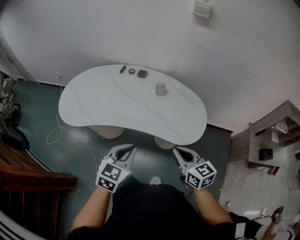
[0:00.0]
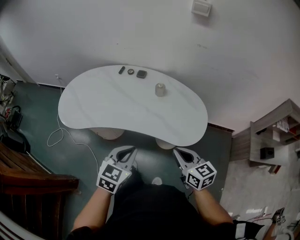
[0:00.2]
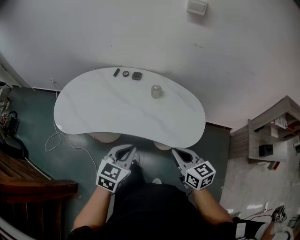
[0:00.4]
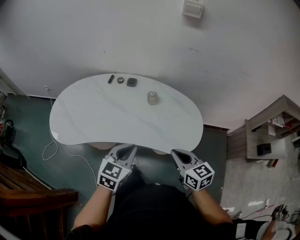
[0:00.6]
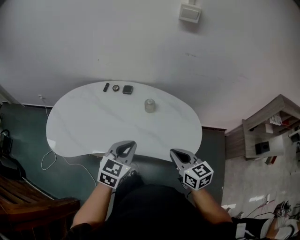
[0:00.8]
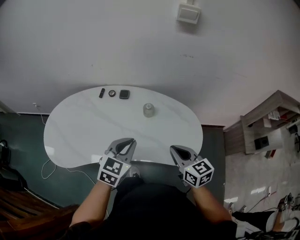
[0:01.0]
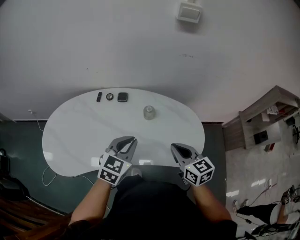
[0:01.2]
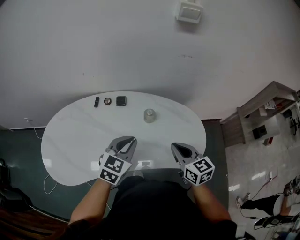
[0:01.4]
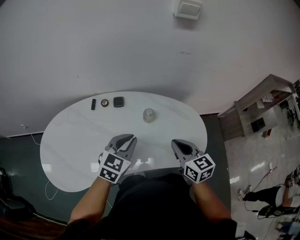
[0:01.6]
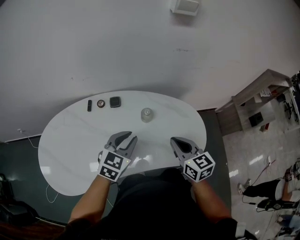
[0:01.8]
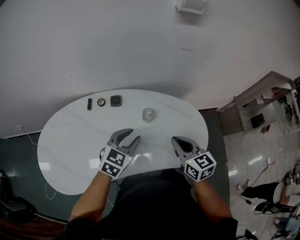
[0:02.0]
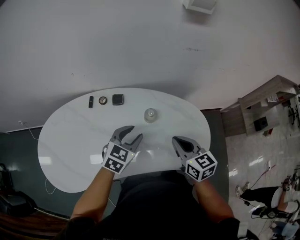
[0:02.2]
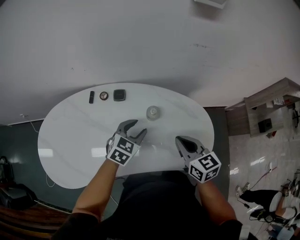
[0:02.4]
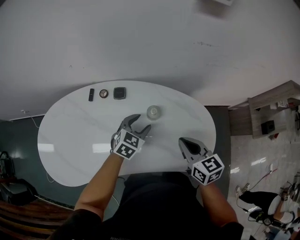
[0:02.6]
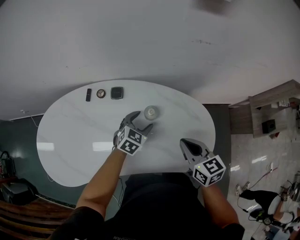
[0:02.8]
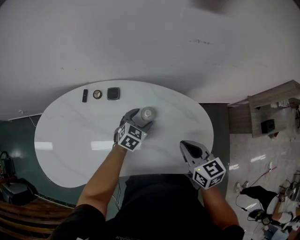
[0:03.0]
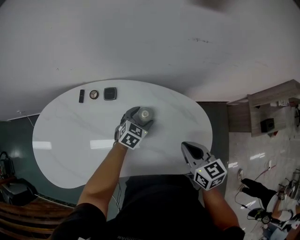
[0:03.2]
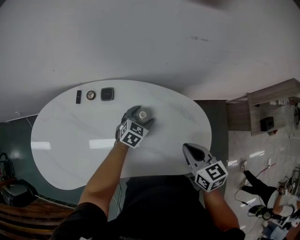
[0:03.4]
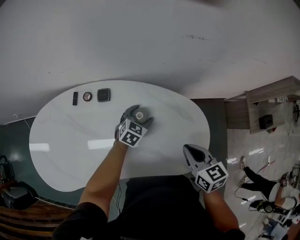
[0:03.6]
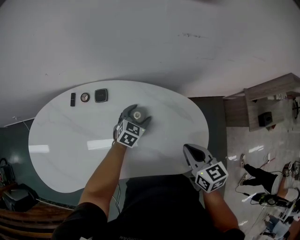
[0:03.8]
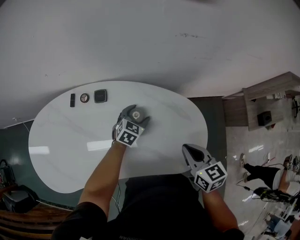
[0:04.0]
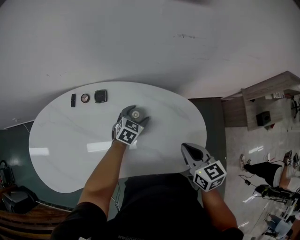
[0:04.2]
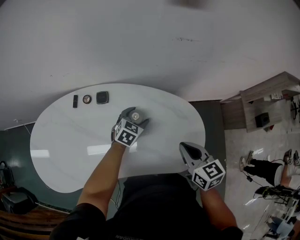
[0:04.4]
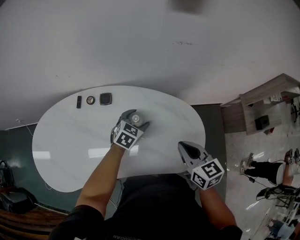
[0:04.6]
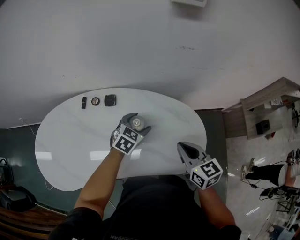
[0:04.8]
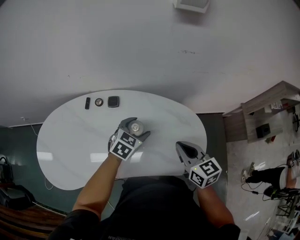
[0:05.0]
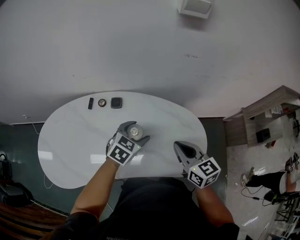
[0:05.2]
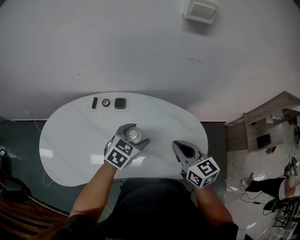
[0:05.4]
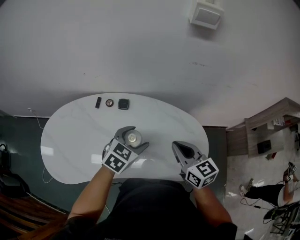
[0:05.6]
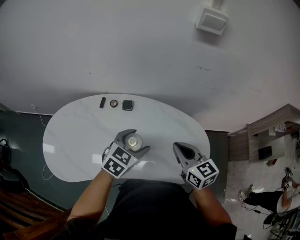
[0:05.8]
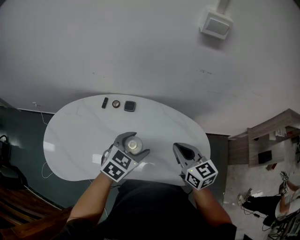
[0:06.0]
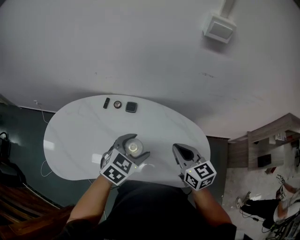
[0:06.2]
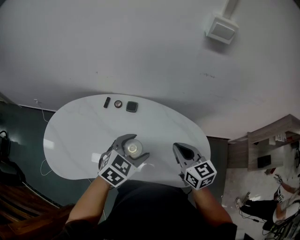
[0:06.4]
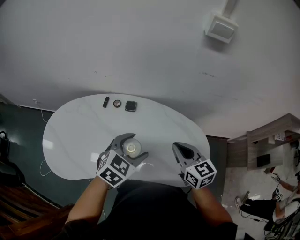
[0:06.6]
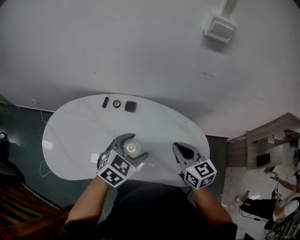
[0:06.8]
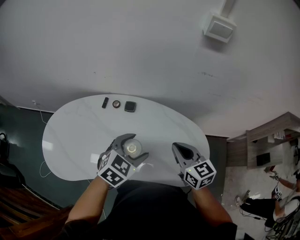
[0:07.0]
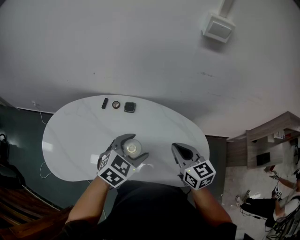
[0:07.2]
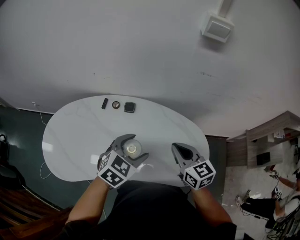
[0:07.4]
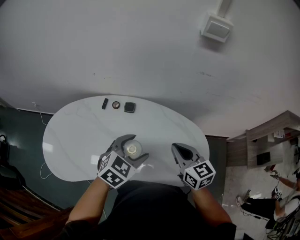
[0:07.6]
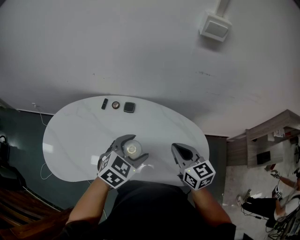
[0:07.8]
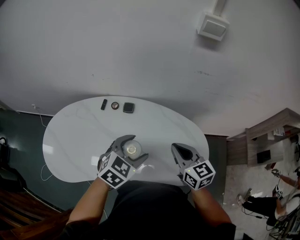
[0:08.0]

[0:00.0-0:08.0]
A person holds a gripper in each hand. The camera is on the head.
0:00.0 to 0:01.6: Both grippers move forward, some 25 cm. The left gripper swivels roughly 30 degrees. Meanwhile the right gripper swivels approximately 20 degrees.
0:01.6 to 0:03.2: The left gripper moves downward and forward, some 25 cm, and opens its fingers. The right gripper goes some 10 cm forward, to the right and downward.
0:03.2 to 0:04.8: The left gripper goes about 10 cm upward.
0:04.8 to 0:06.4: The right gripper is displaced to the left by roughly 5 cm; the left gripper travels upward, backward and to the left by some 20 cm.
0:06.4 to 0:08.0: Both grippers stay about where they are.

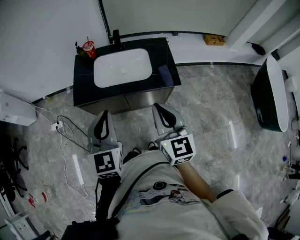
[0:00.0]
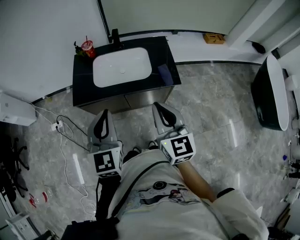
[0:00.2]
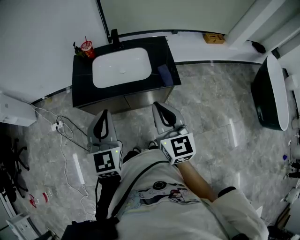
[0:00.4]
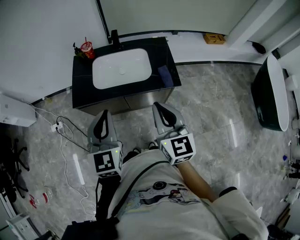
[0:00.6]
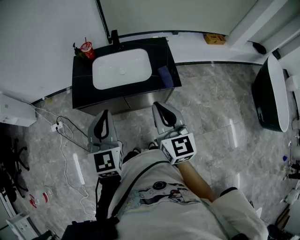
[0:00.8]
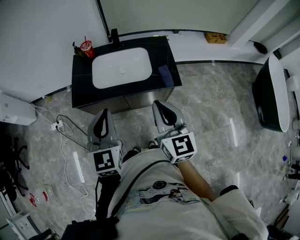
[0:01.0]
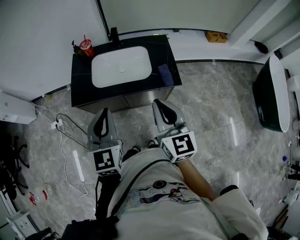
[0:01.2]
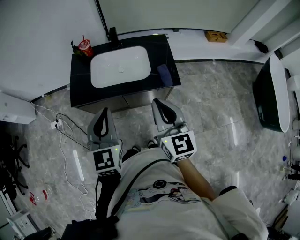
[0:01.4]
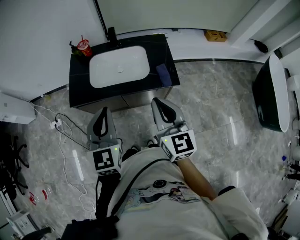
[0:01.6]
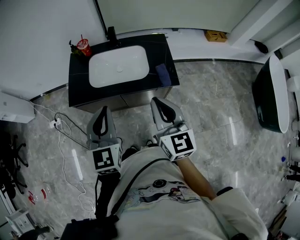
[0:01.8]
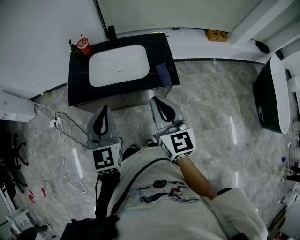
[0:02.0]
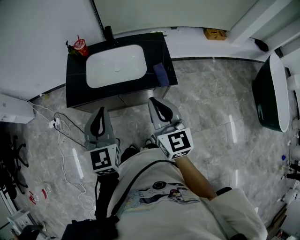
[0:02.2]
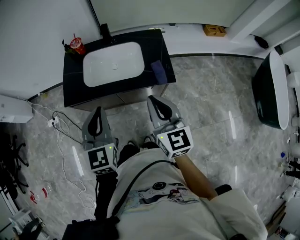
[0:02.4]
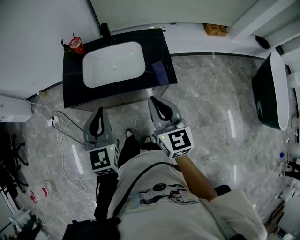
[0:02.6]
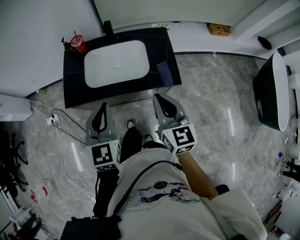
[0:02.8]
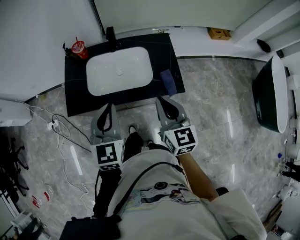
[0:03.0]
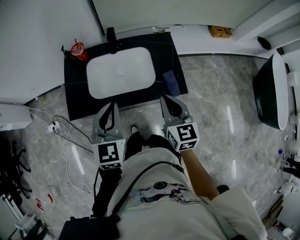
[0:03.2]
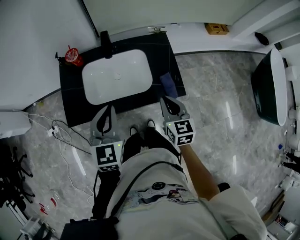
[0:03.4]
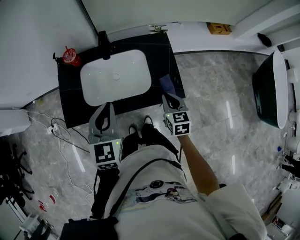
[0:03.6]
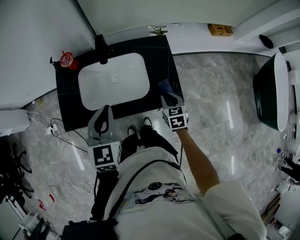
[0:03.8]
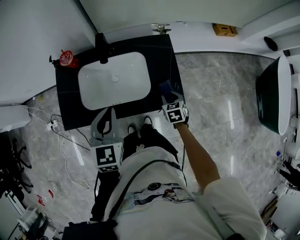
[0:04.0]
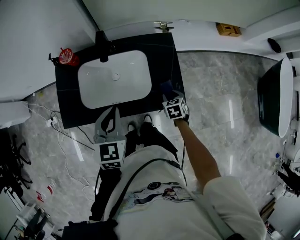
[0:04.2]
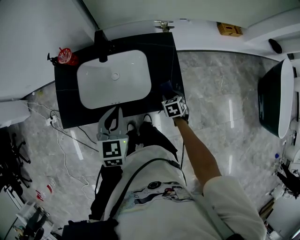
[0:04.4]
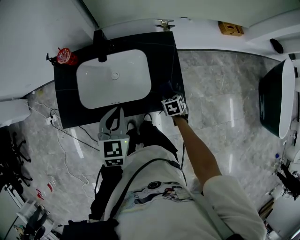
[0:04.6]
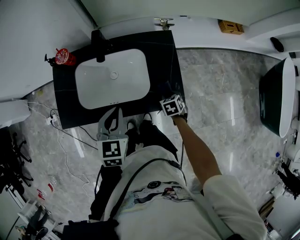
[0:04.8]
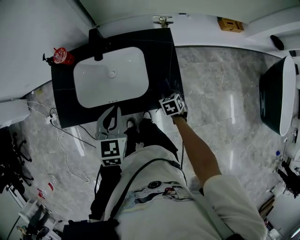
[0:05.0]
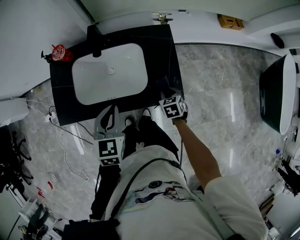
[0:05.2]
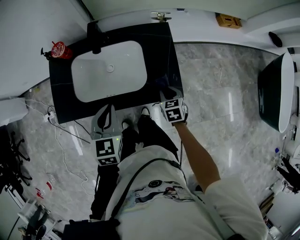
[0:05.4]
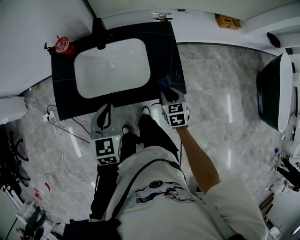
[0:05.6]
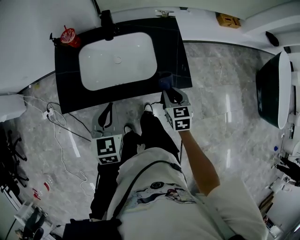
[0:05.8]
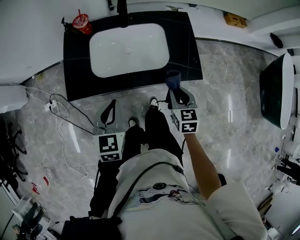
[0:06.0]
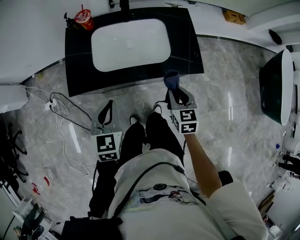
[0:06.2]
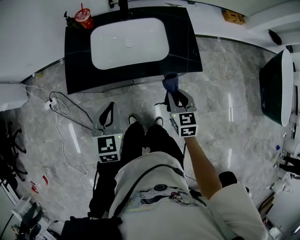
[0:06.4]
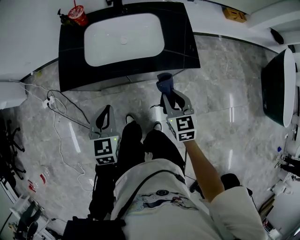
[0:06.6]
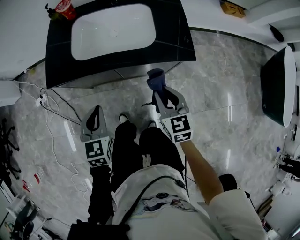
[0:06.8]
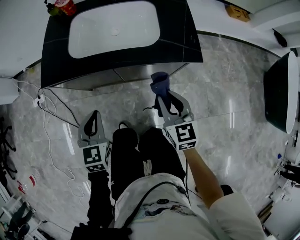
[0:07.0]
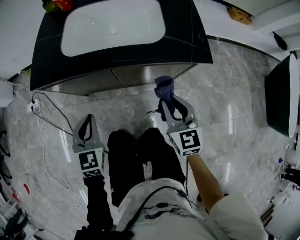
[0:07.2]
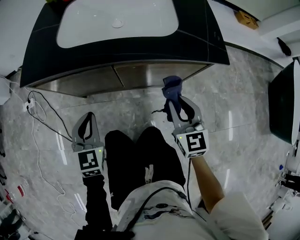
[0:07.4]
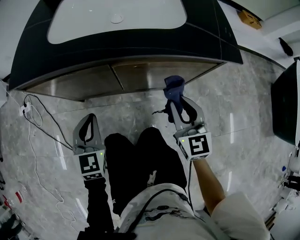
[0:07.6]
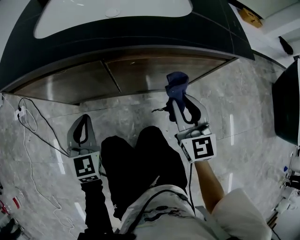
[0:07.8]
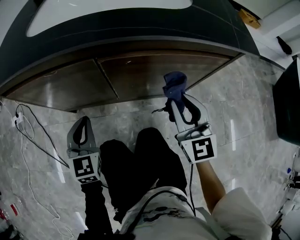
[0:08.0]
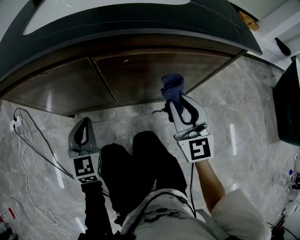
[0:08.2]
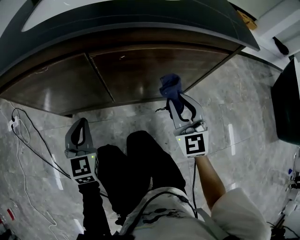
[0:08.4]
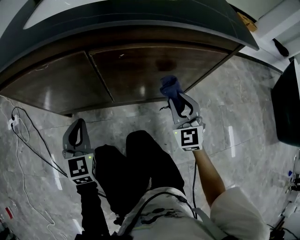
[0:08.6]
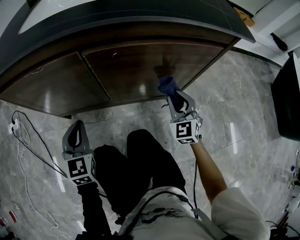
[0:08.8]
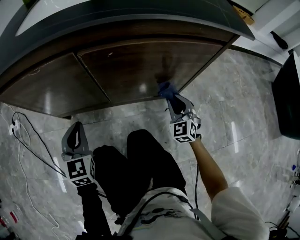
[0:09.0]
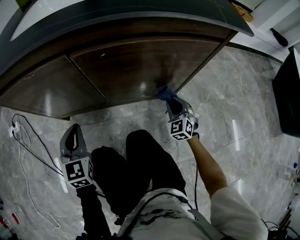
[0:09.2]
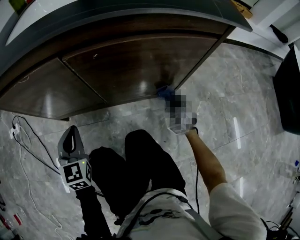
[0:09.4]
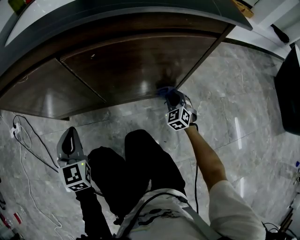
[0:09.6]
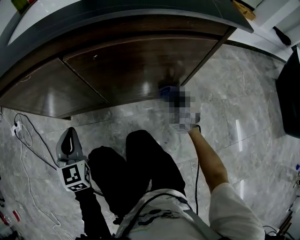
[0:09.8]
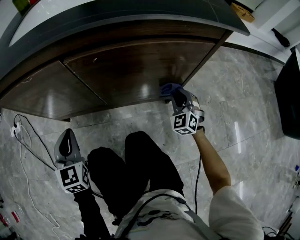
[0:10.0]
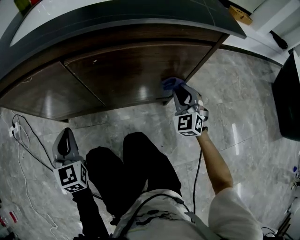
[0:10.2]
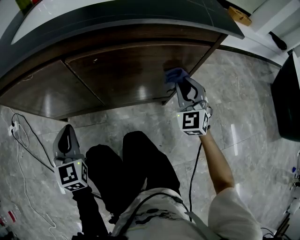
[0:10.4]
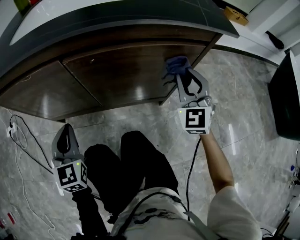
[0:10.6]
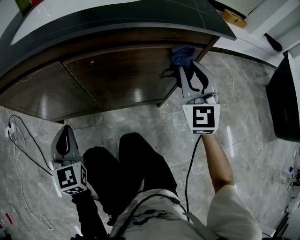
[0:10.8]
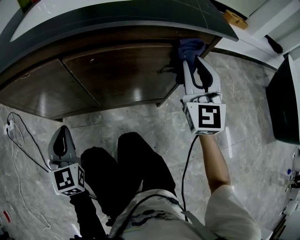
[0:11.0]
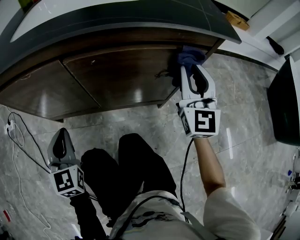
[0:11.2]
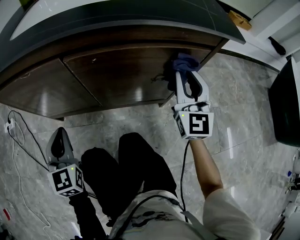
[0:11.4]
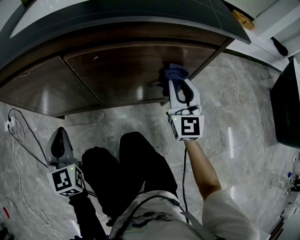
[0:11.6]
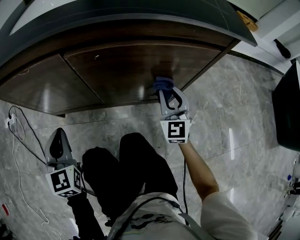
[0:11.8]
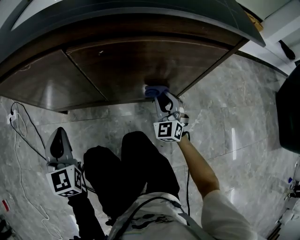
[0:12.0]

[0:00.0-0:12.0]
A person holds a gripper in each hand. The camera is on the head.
0:00.0 to 0:01.6: The right gripper moves some 5 cm.
0:01.6 to 0:03.0: The right gripper is displaced forward and downward by about 10 cm. The left gripper moves forward, roughly 10 cm.
0:03.0 to 0:04.4: The right gripper is displaced downward and forward by about 35 cm, tips its fingers downward by some 50 degrees, and opens; the left gripper moves forward, downward and to the right, roughly 15 cm.
0:04.4 to 0:06.0: The left gripper is displaced to the left and backward by roughly 15 cm. The right gripper goes approximately 20 cm upward, backward and to the left, and rotates some 30 degrees.
0:06.0 to 0:07.6: Both grippers travel together downward, roughly 30 cm. The right gripper rotates approximately 30 degrees.
0:07.6 to 0:09.0: The left gripper goes about 15 cm downward. Meanwhile the right gripper moves downward, some 25 cm, and changes its angle by approximately 30 degrees.
0:09.0 to 0:10.4: The right gripper travels upward by some 15 cm.
0:10.4 to 0:12.0: The right gripper shifts approximately 15 cm downward and to the left.

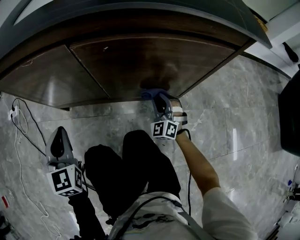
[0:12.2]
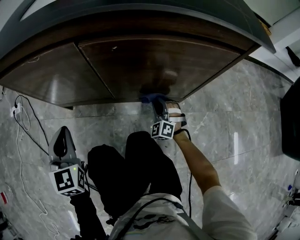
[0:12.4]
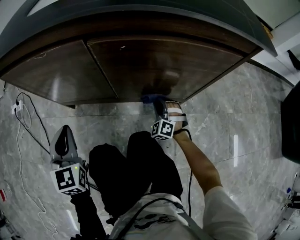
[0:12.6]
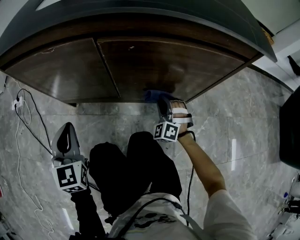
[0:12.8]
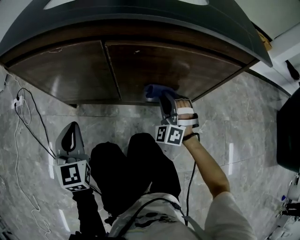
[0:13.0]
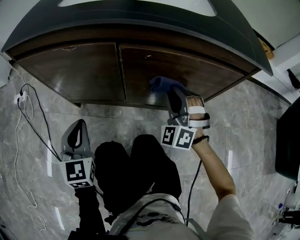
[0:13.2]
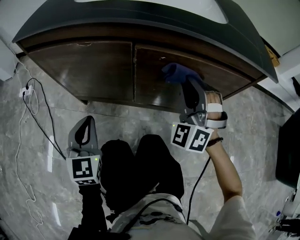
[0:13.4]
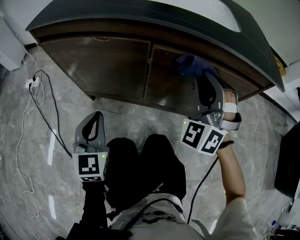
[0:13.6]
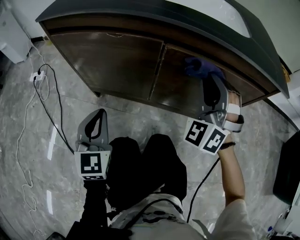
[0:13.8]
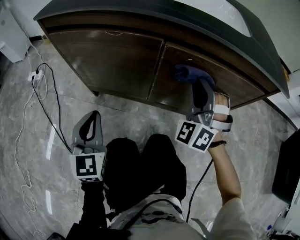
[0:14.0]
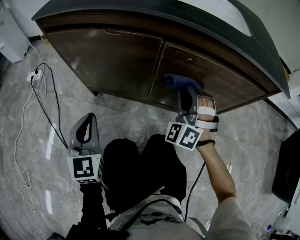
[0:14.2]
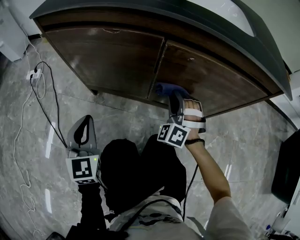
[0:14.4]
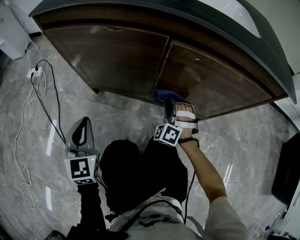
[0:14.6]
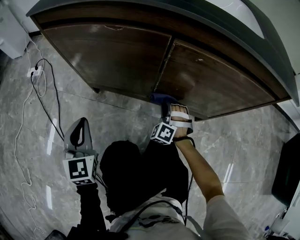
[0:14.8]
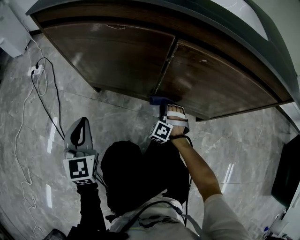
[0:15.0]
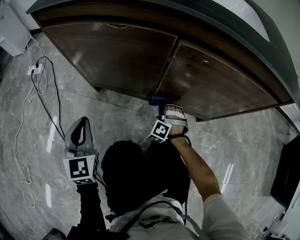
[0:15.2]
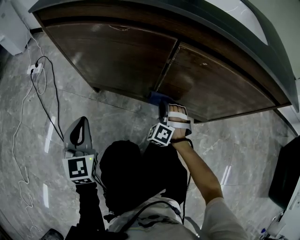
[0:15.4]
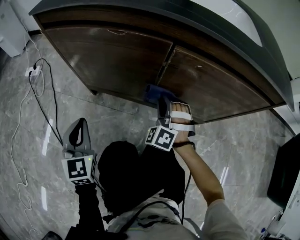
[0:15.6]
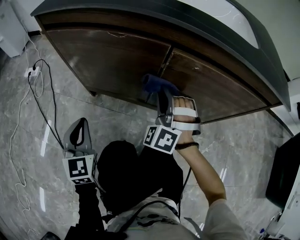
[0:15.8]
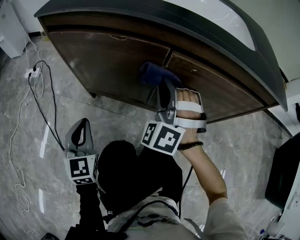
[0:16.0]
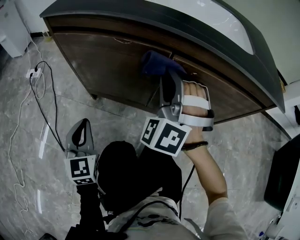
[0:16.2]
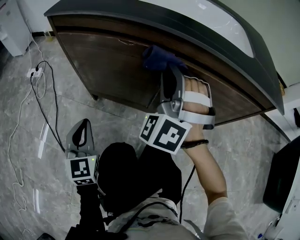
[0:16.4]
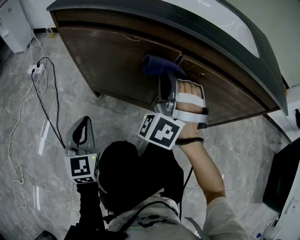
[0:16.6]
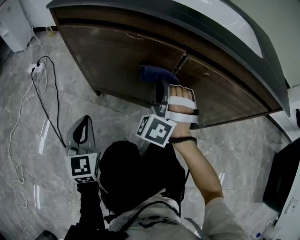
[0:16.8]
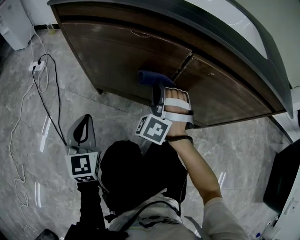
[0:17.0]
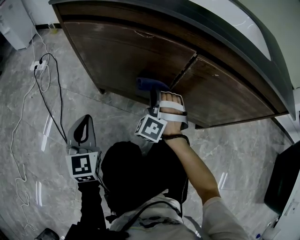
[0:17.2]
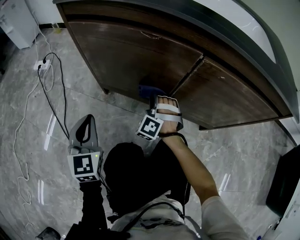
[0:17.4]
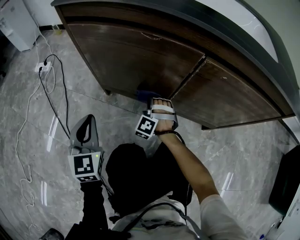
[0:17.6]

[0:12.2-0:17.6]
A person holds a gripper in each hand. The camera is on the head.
0:12.2 to 0:13.6: The right gripper heads upward, covering roughly 30 cm, and swivels some 20 degrees.
0:13.6 to 0:15.0: The left gripper heads to the left and downward, covering roughly 10 cm; the right gripper moves downward, approximately 40 cm, and tilts its fingers roughly 30 degrees downward.
0:15.0 to 0:16.2: The right gripper shifts roughly 40 cm upward, and changes its angle by roughly 30 degrees.
0:16.2 to 0:17.6: The left gripper ends up some 5 cm from where it was. Meanwhile the right gripper is displaced downward by approximately 35 cm, and turns by about 30 degrees.
